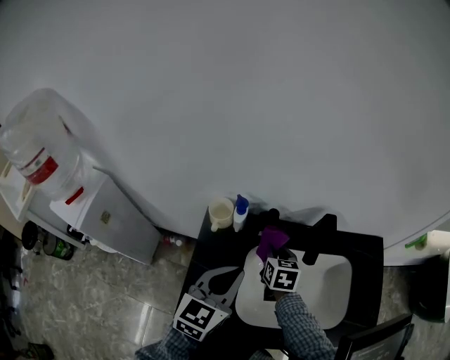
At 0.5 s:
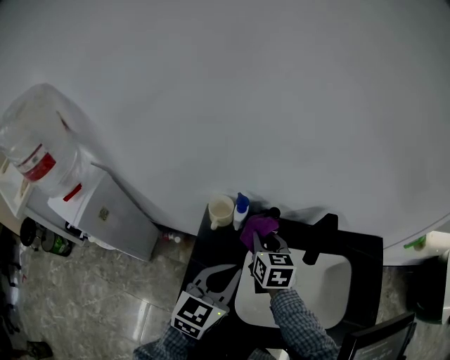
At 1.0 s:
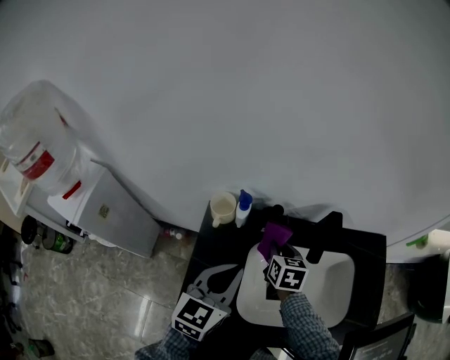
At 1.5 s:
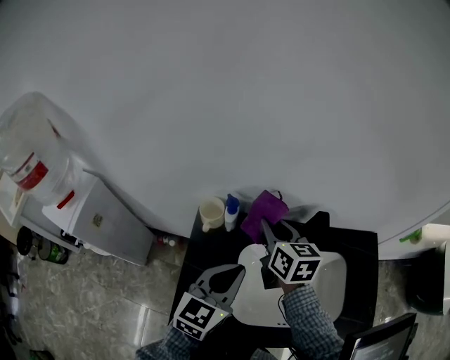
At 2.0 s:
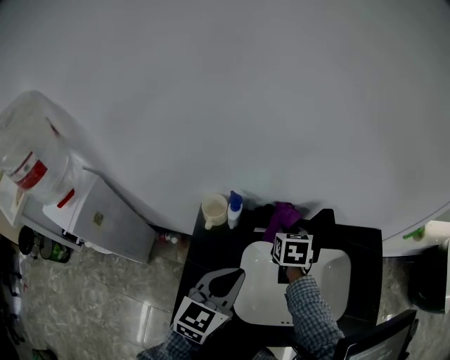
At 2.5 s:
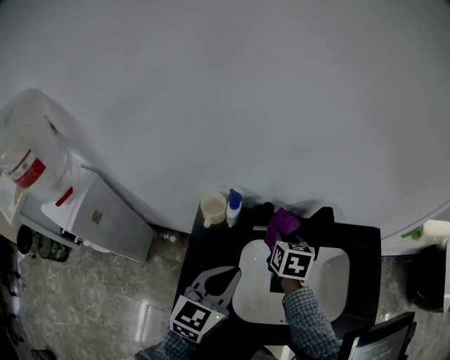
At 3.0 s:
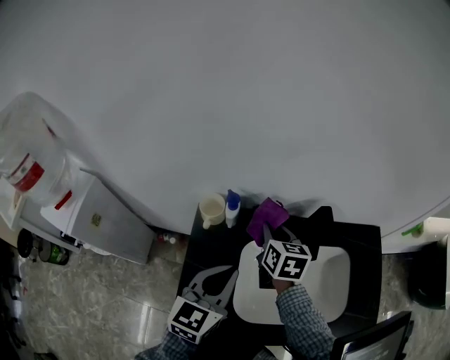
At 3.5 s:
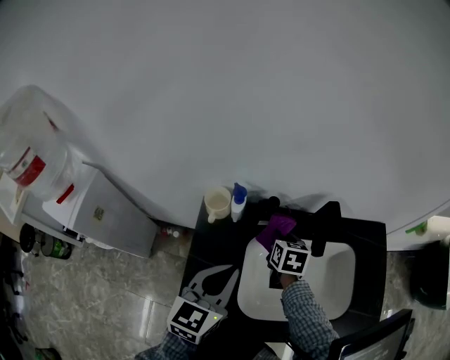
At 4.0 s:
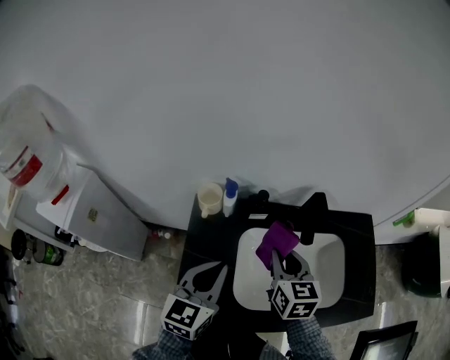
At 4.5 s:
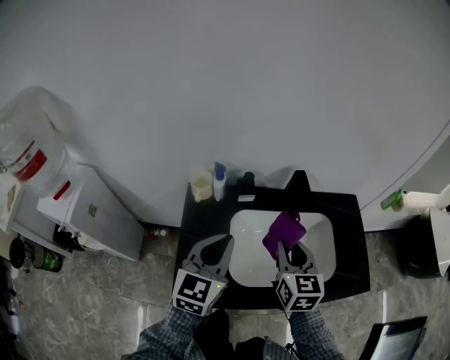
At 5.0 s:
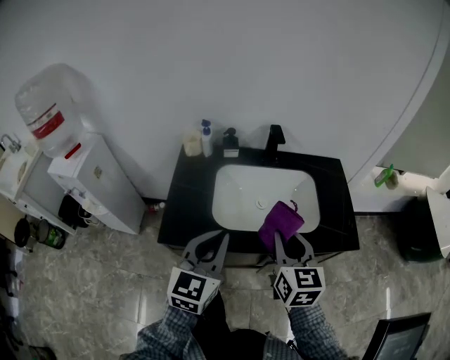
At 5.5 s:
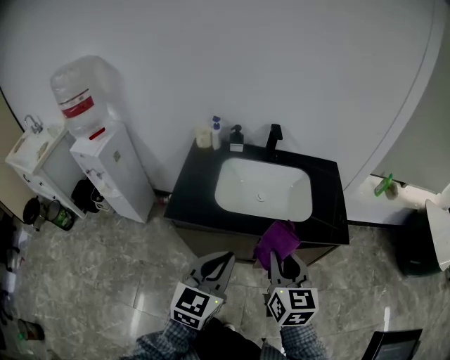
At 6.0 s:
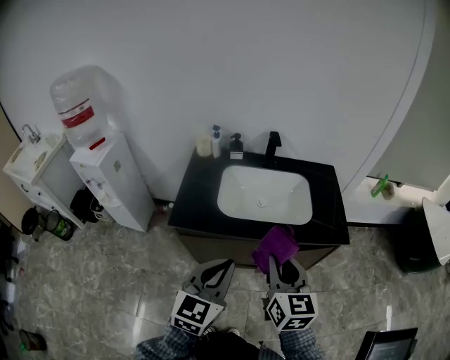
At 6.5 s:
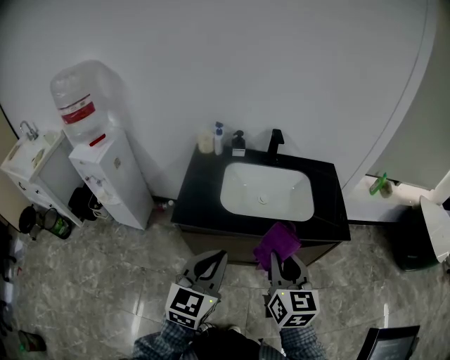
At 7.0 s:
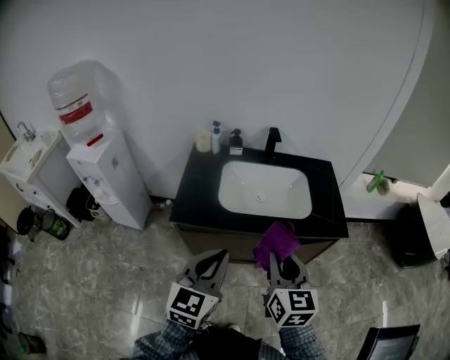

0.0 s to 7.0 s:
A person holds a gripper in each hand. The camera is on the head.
0.0 to 2.0 s: The right gripper swings up and down, approximately 15 cm each way, with 3 reversals.
2.0 to 3.5 s: The right gripper shifts by some 5 cm.
3.5 to 5.0 s: The left gripper goes about 30 cm backward and to the right; the right gripper is displaced backward, upward and to the right by about 40 cm, and rotates roughly 30 degrees.
5.0 to 7.0 s: The grippers both shift backward by approximately 20 cm.

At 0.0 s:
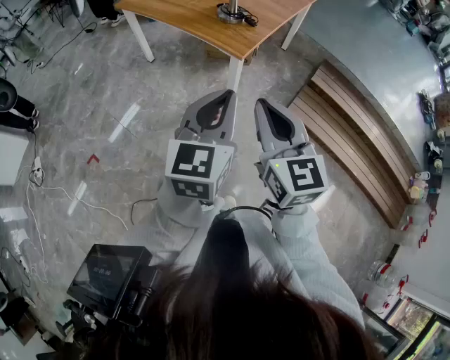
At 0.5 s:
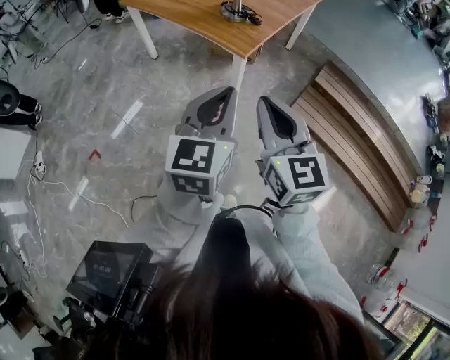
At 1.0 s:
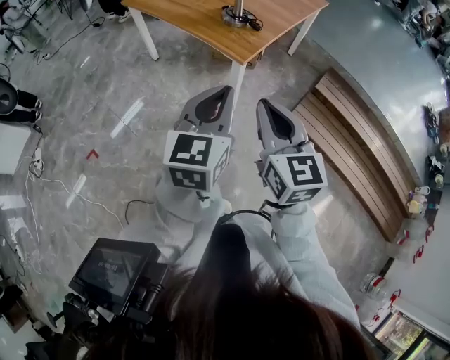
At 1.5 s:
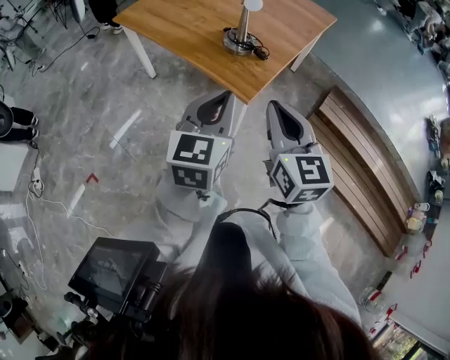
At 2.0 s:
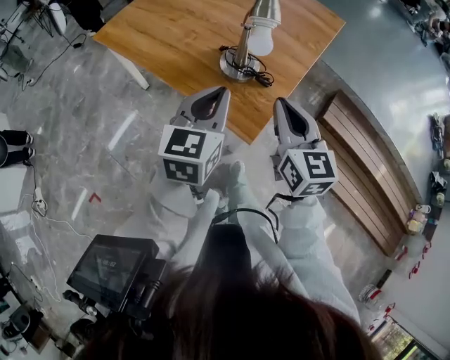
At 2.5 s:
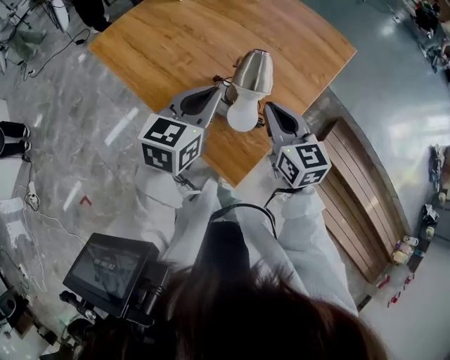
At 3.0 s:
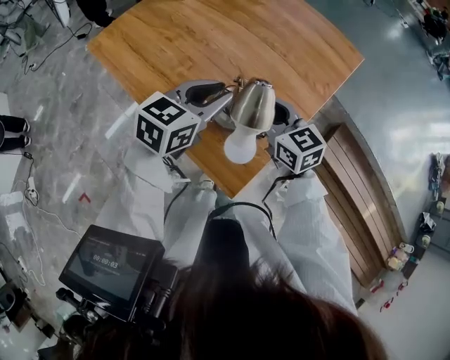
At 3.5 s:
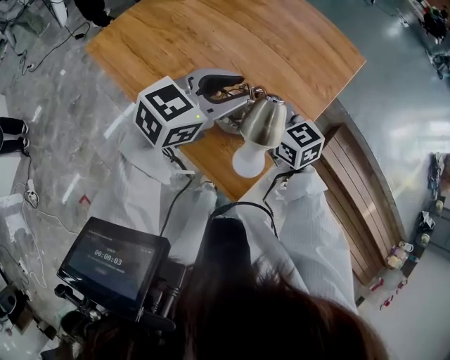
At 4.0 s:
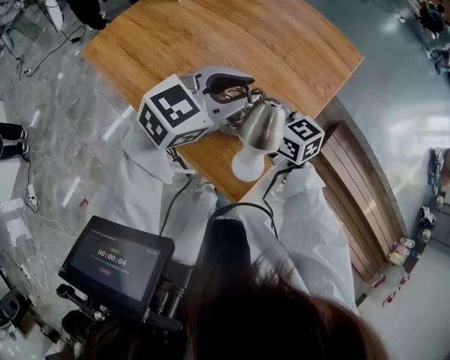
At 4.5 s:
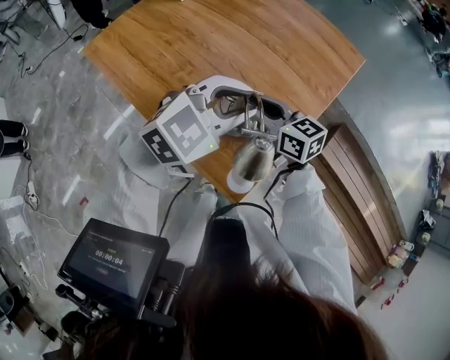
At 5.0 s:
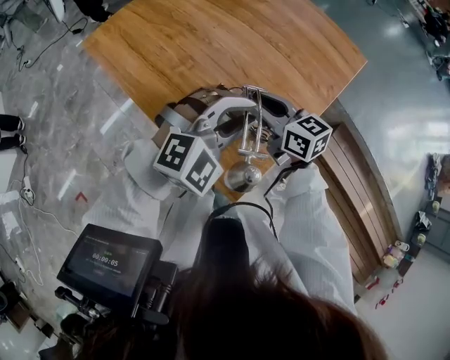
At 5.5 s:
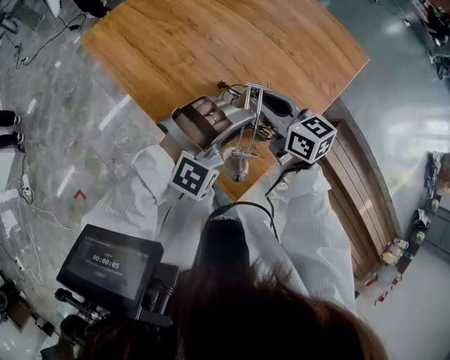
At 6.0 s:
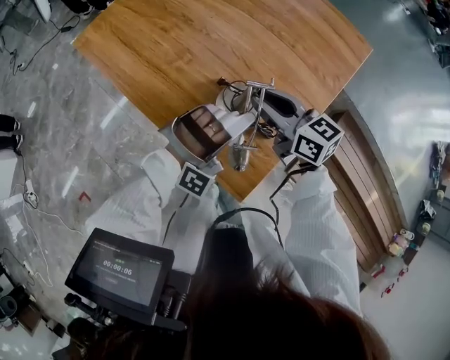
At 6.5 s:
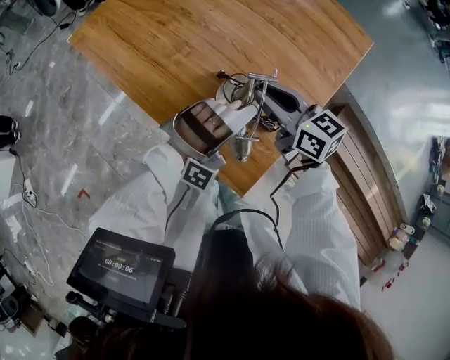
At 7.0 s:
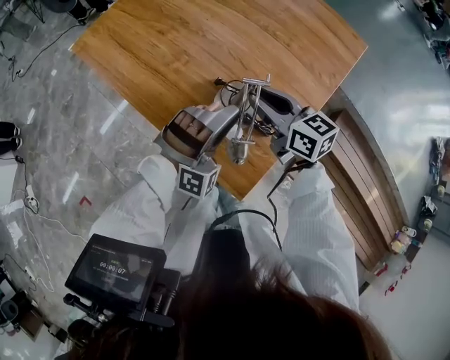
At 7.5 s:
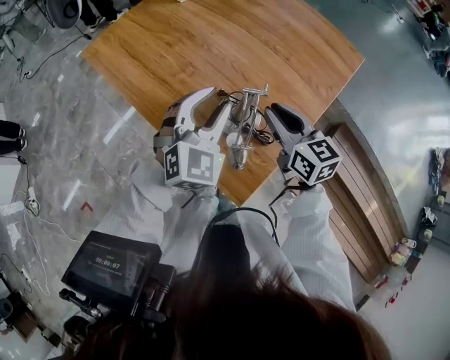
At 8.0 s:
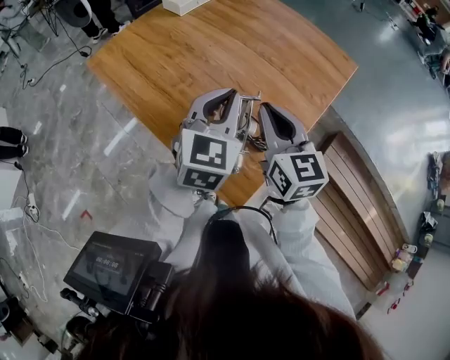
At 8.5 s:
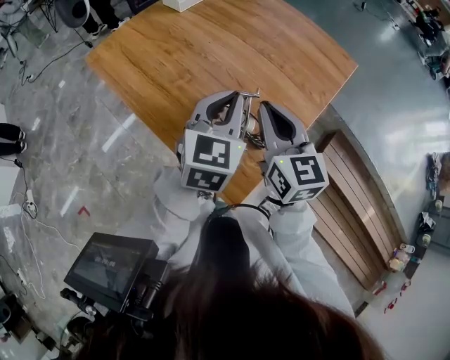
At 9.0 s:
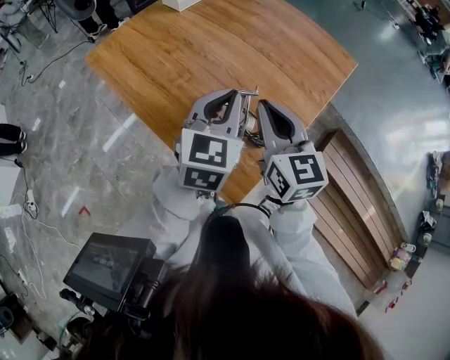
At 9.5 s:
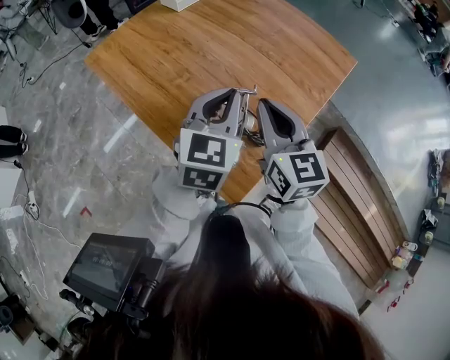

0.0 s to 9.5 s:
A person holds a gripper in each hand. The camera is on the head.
0.0 to 2.0 s: The pair of grippers is taken forward, some 50 cm.
2.0 to 4.0 s: Both grippers move forward, about 25 cm. The right gripper turns by roughly 30 degrees, and opens. The left gripper turns by approximately 40 degrees, and opens up.
4.0 to 5.5 s: The left gripper is displaced downward and backward by about 10 cm, and rolls clockwise, seen from behind, by roughly 70 degrees.
5.5 to 7.5 s: The right gripper moves approximately 5 cm. Meanwhile the left gripper moves forward and to the left, about 10 cm, and rotates around the line of its fingers by roughly 50 degrees, counterclockwise from behind.
7.5 to 9.5 s: The right gripper travels upward by some 10 cm, while the left gripper changes place by approximately 5 cm, swivels roughly 30 degrees, and closes up.

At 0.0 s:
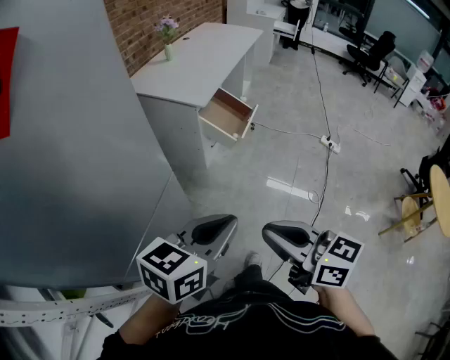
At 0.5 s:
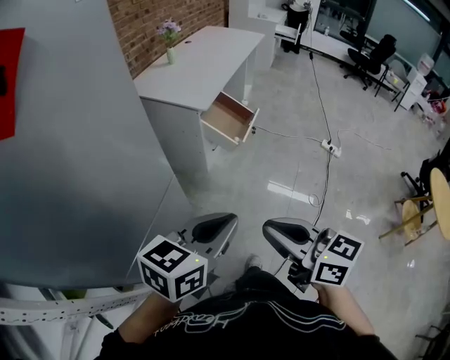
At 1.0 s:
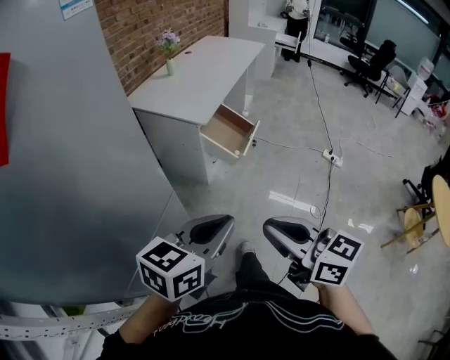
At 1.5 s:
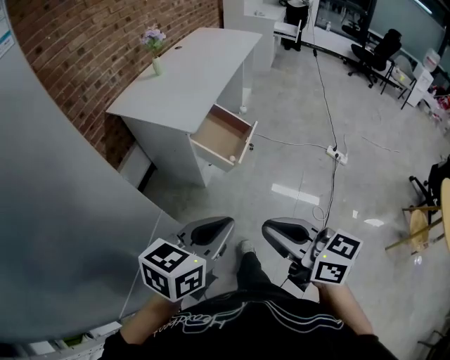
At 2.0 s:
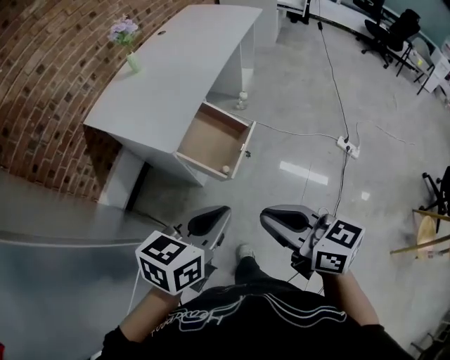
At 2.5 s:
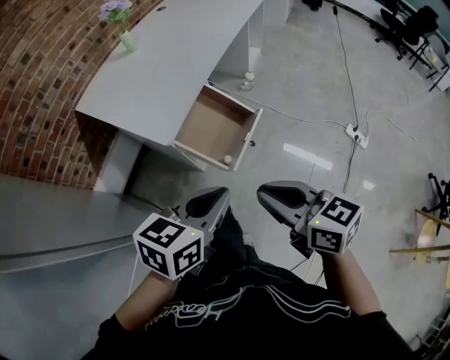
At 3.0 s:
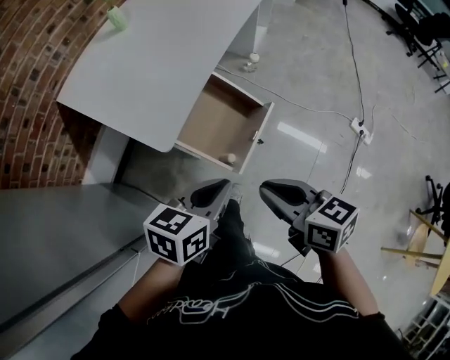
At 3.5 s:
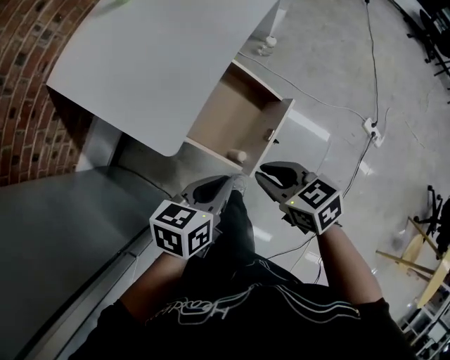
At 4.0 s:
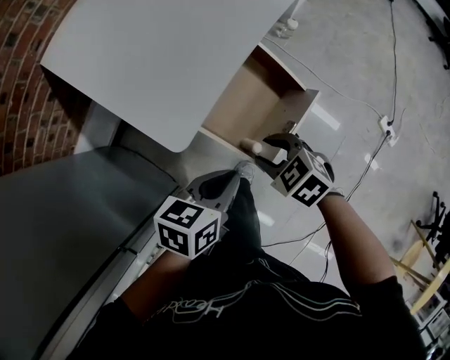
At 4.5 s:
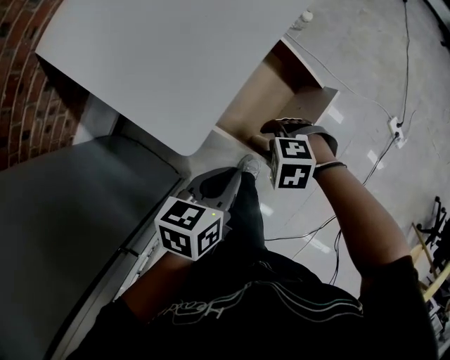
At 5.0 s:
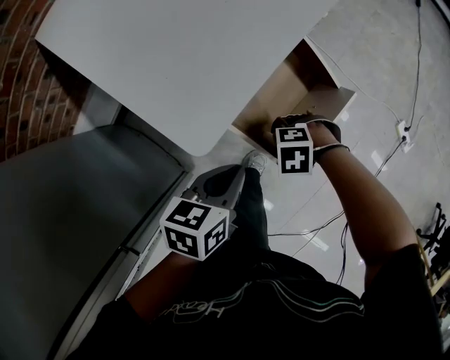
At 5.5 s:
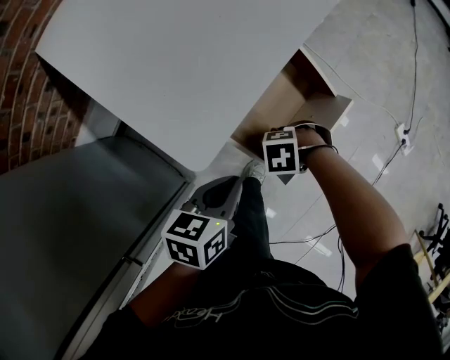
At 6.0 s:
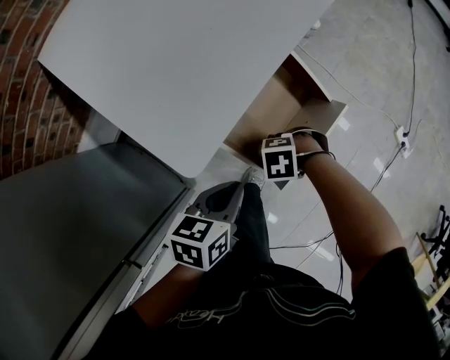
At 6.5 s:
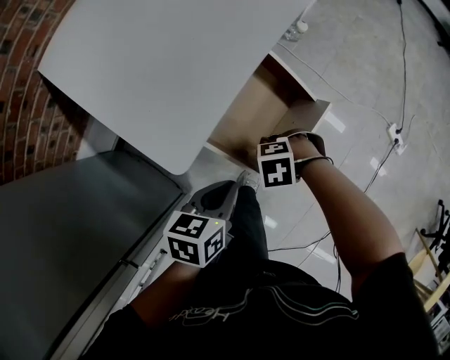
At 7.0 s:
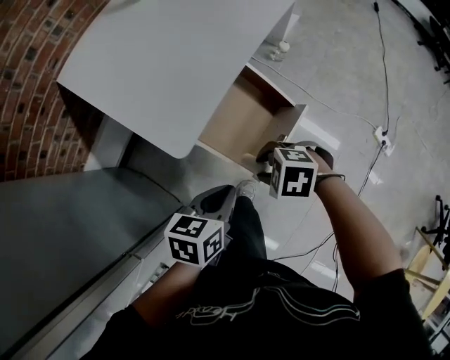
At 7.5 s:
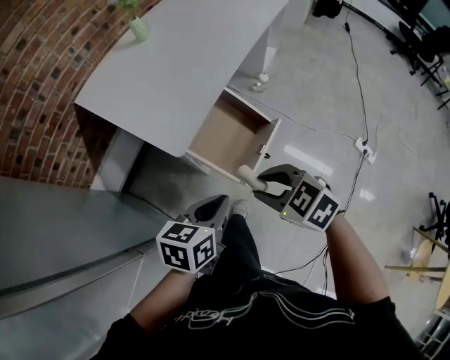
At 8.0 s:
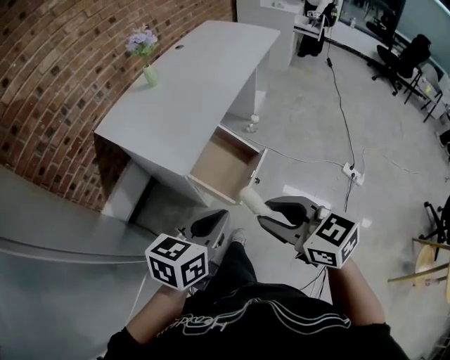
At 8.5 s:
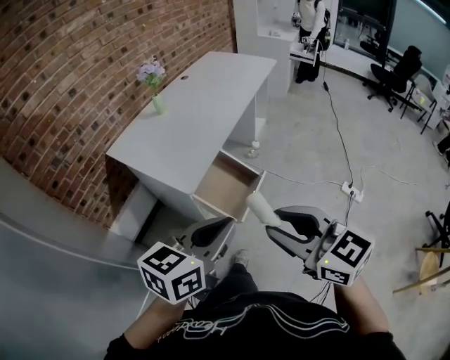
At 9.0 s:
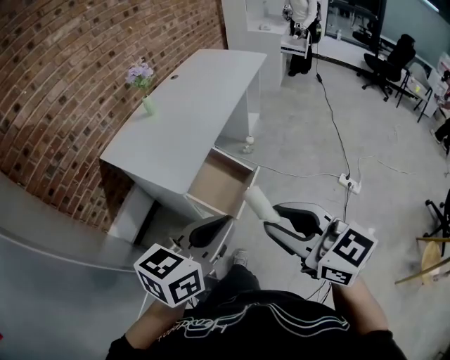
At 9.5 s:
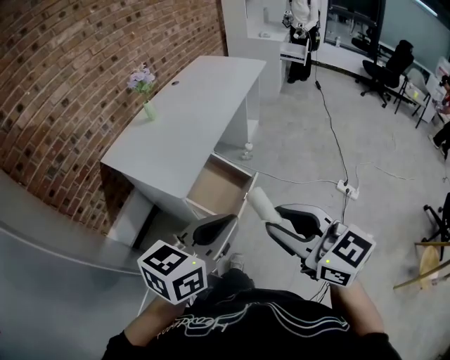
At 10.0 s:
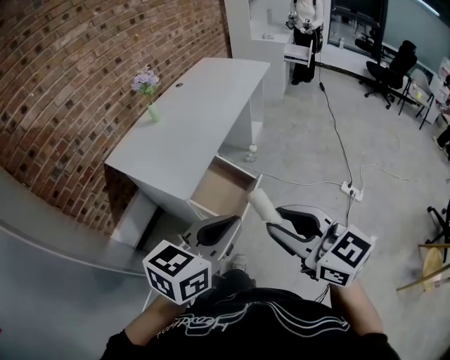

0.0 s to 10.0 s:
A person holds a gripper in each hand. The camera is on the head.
0.0 to 2.0 s: The pair of grippers is taken forward, approximately 50 cm.
2.0 to 4.0 s: The two grippers go approximately 50 cm downward and forward. The right gripper tips its fingers downward by roughly 40 degrees, and opens up; the left gripper turns by about 20 degrees.
4.0 to 6.0 s: The left gripper moves downward, roughly 5 cm; the right gripper heads downward, covering roughly 15 cm, and changes its angle by approximately 50 degrees.
6.0 to 8.0 s: Both grippers travel together upward, some 40 cm. The left gripper rotates roughly 30 degrees. Meanwhile the right gripper points its fingers approximately 50 degrees further upward.
8.0 to 10.0 s: The right gripper shifts some 15 cm upward, backward and to the right; the left gripper heads upward, to the right and backward, covering approximately 15 cm.
